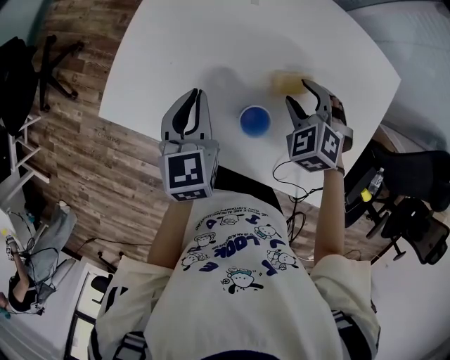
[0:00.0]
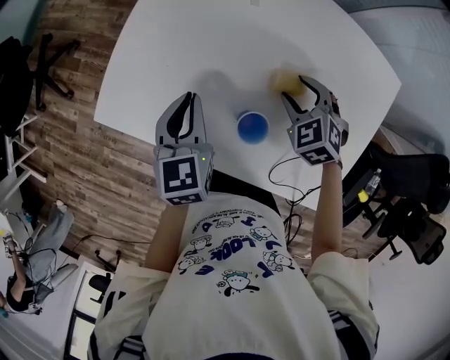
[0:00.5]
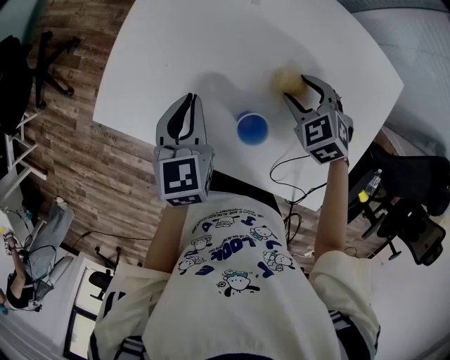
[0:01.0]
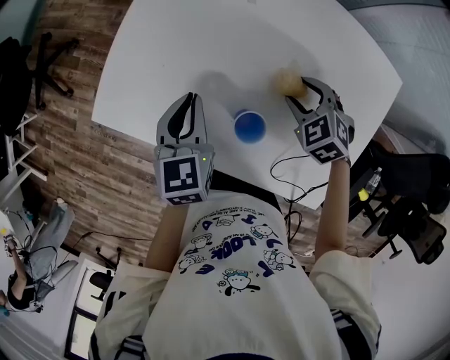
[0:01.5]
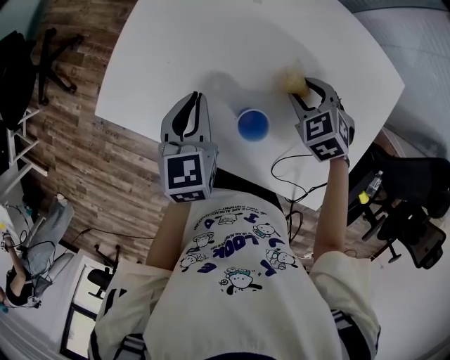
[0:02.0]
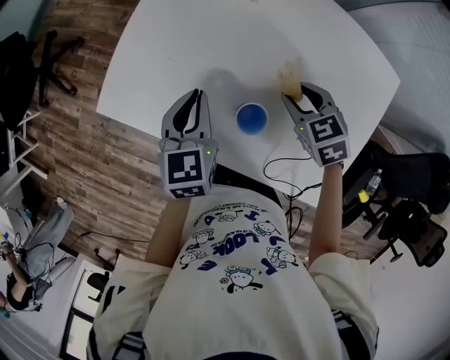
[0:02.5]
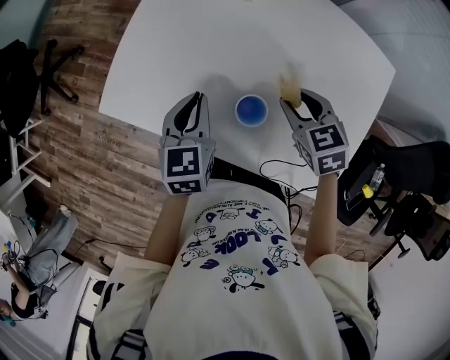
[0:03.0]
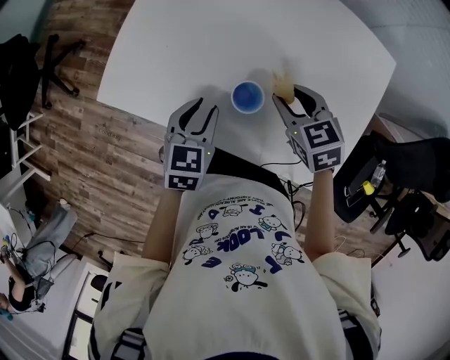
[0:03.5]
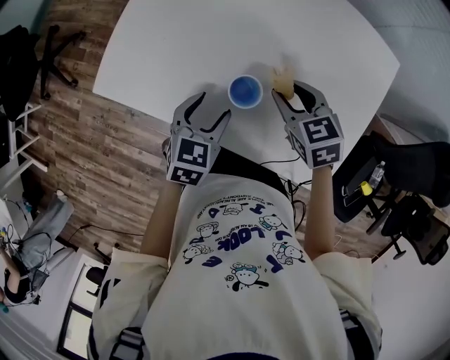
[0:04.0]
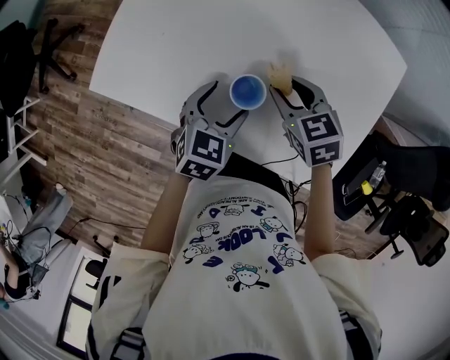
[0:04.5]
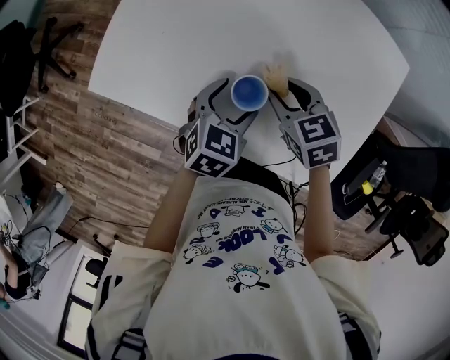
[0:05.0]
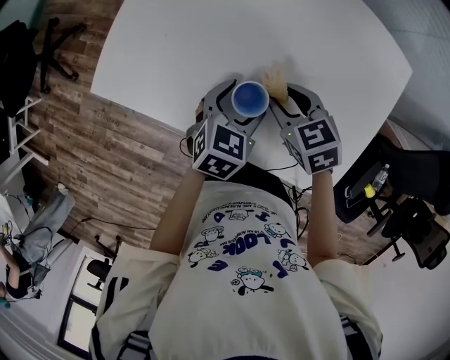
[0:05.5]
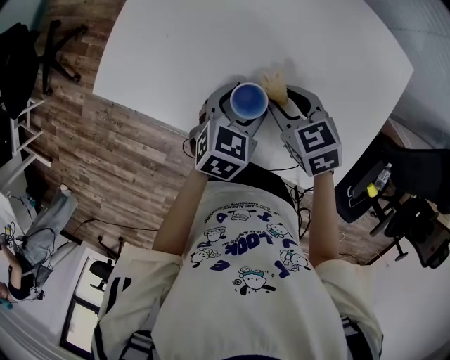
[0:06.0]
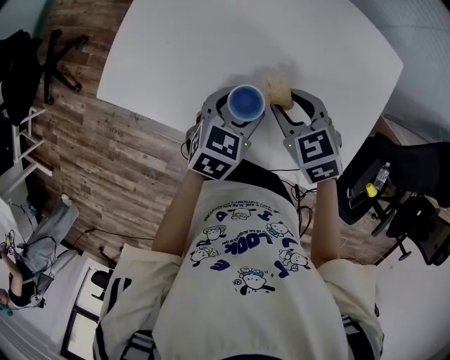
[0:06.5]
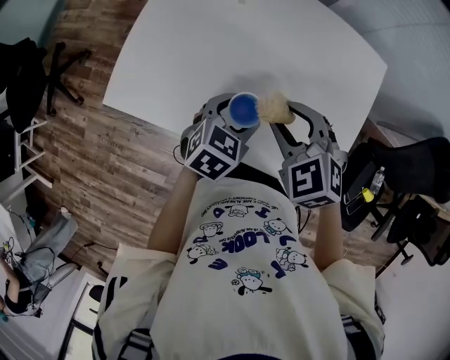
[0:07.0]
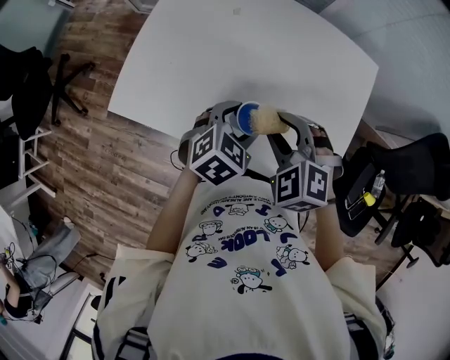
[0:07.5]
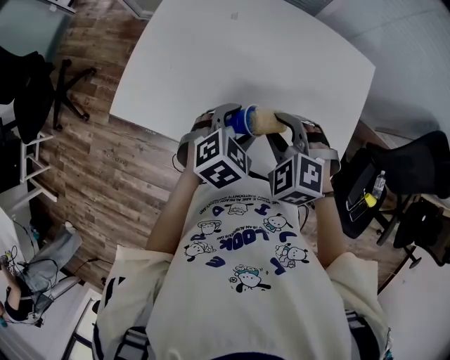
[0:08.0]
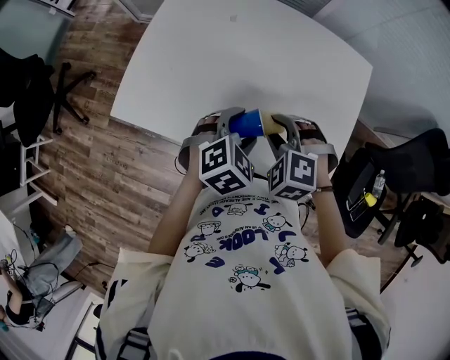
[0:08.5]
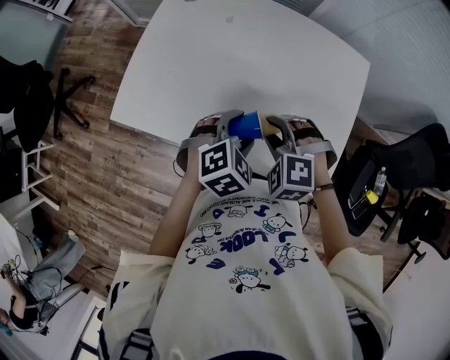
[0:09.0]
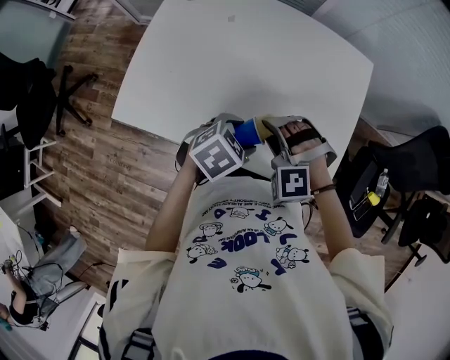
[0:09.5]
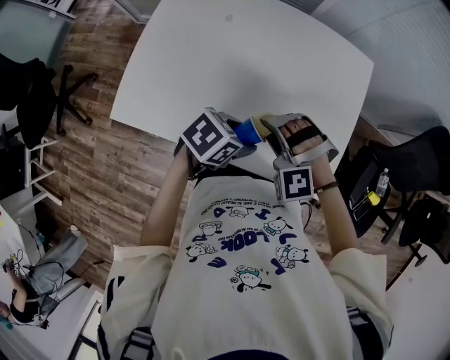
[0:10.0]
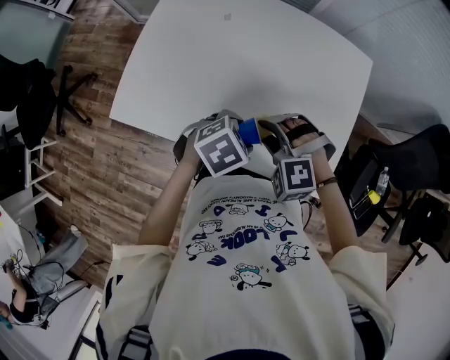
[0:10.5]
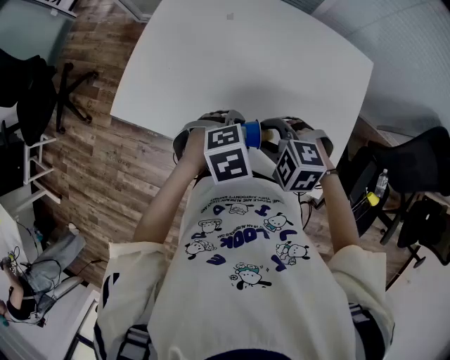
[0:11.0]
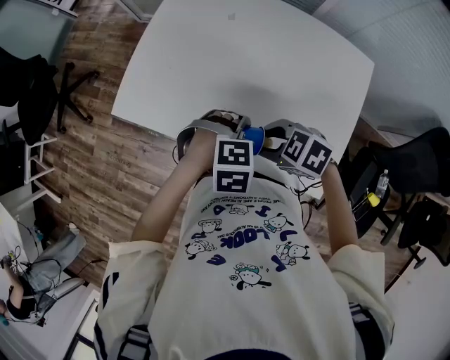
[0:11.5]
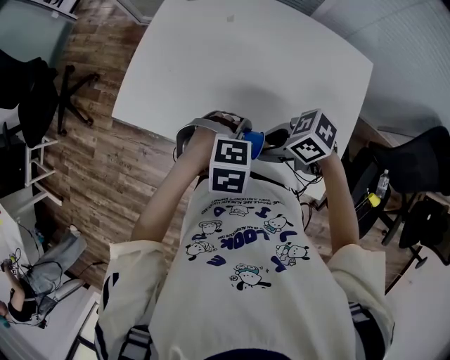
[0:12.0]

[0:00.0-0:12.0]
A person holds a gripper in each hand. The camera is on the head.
0:00.0 to 0:02.0: The grippers stay close to where they were, moving slightly.
0:02.0 to 0:04.0: The left gripper goes roughly 10 cm backward and downward, turns by about 30 degrees, and opens up, while the right gripper changes place by about 10 cm, and swivels approximately 30 degrees.
0:04.0 to 0:06.0: The left gripper shifts roughly 10 cm to the right.
0:06.0 to 0:08.0: Both grippers move upward, some 5 cm. The left gripper rotates some 30 degrees, while the right gripper turns by some 40 degrees.
0:08.0 to 0:10.0: The left gripper rotates some 40 degrees. The right gripper turns by some 40 degrees.
0:10.0 to 0:12.0: The right gripper moves some 5 cm, and swivels approximately 100 degrees, while the left gripper twists some 50 degrees clockwise, seen from behind.

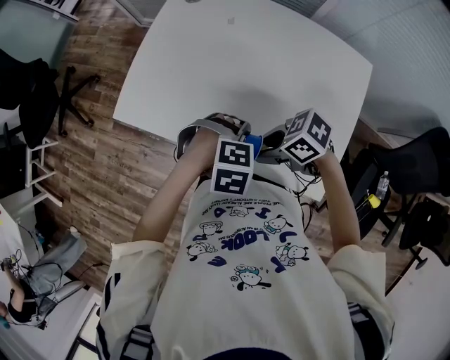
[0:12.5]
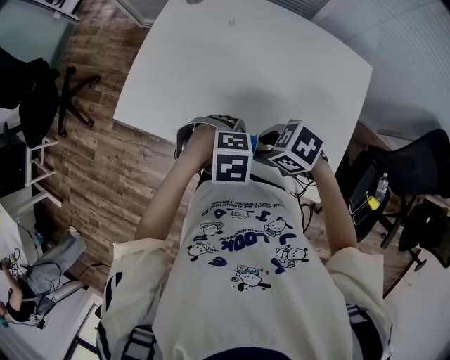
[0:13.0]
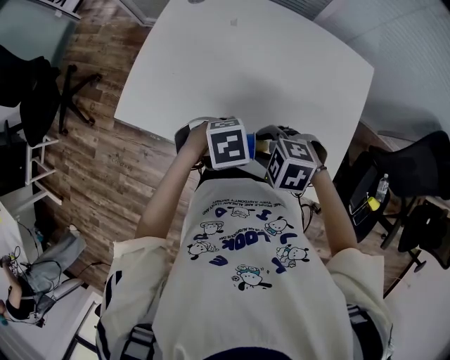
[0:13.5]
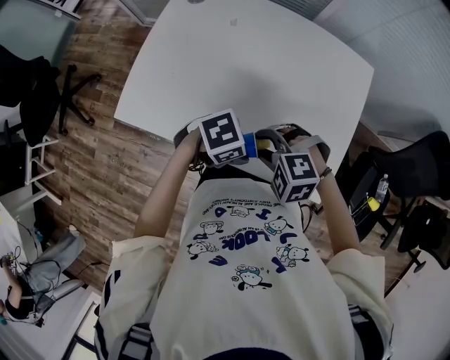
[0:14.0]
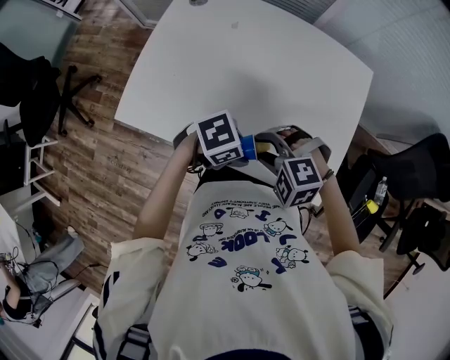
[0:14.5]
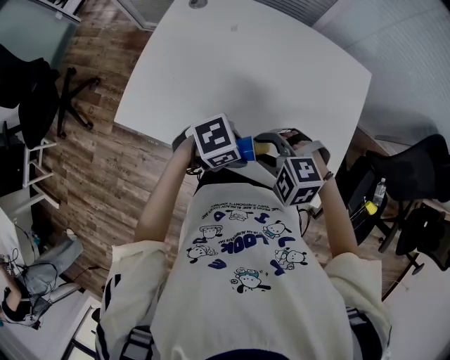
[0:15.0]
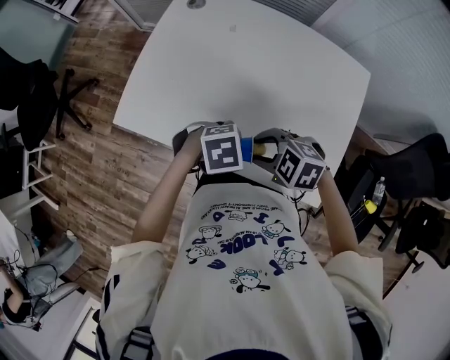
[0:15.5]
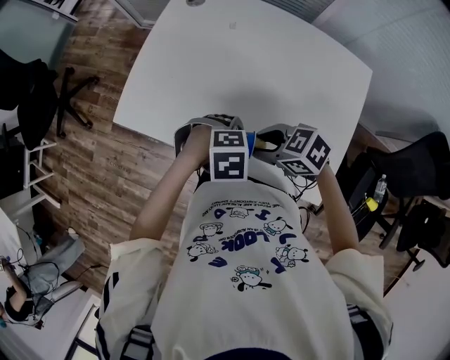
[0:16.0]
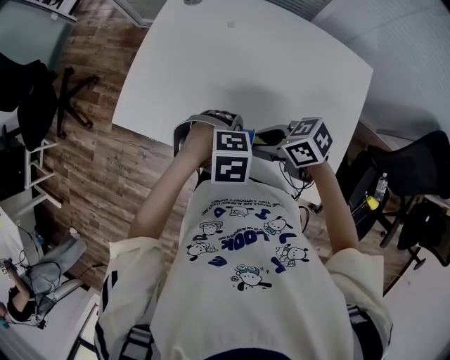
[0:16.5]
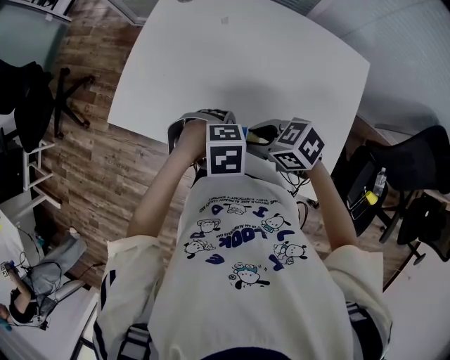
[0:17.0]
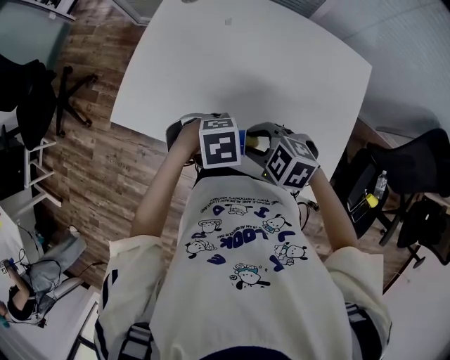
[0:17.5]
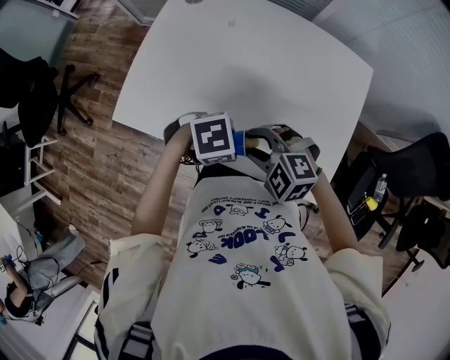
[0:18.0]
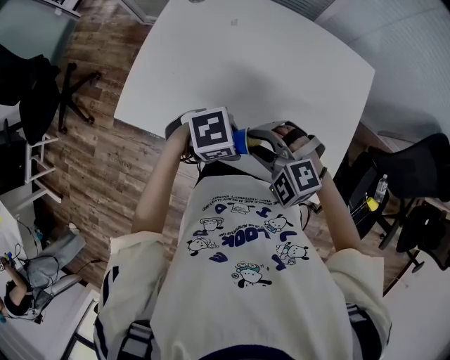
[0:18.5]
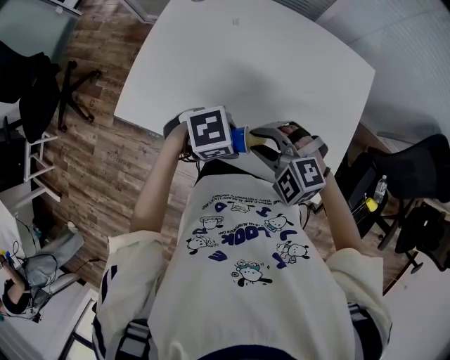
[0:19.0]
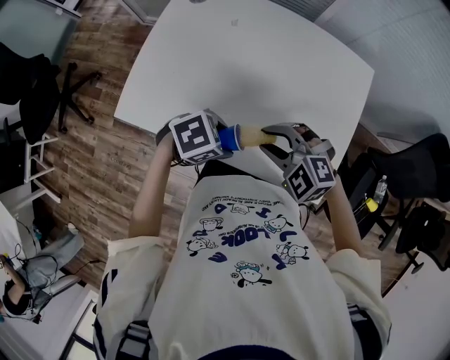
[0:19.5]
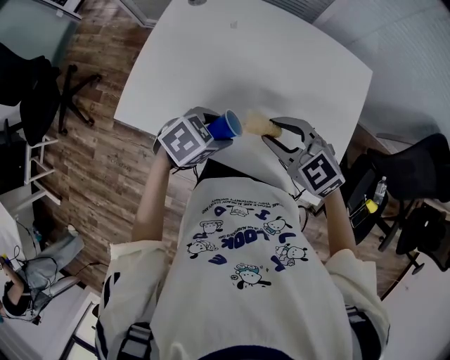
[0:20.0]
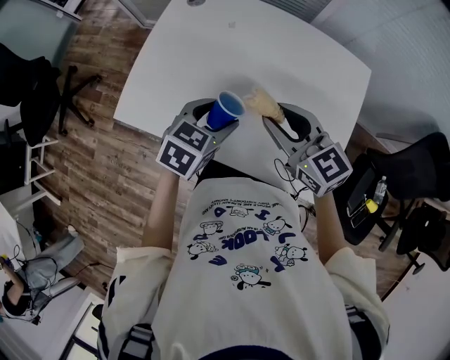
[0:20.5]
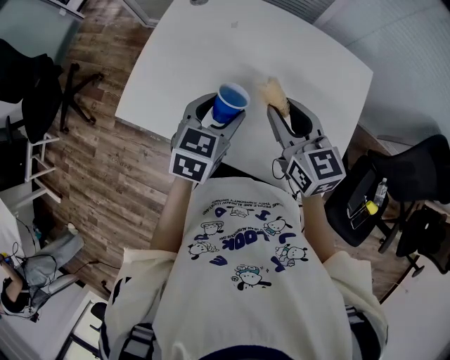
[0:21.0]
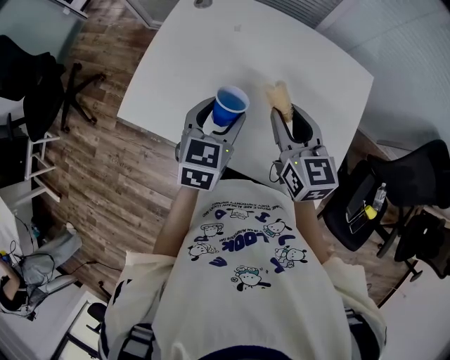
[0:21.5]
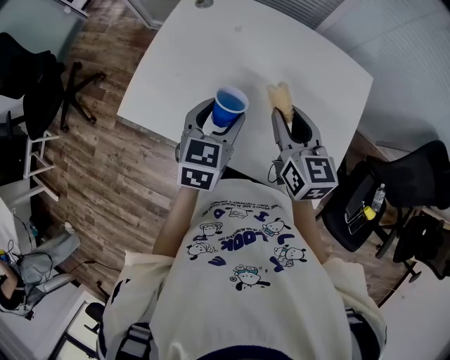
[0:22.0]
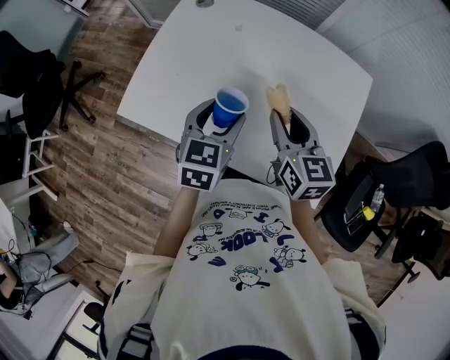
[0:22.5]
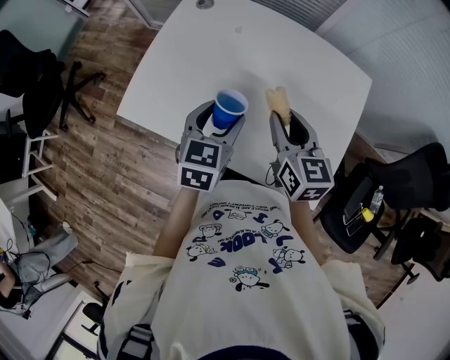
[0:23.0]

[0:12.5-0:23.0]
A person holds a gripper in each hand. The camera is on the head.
0:12.5 to 0:14.5: The left gripper rotates roughly 50 degrees. The right gripper twists approximately 60 degrees counterclockwise, seen from behind.
0:14.5 to 0:16.5: The left gripper swivels roughly 40 degrees. The right gripper rotates around the line of its fingers by some 70 degrees, clockwise from behind.
0:16.5 to 0:19.0: The left gripper swivels roughly 30 degrees. The right gripper rolls counterclockwise, seen from behind, by approximately 70 degrees.
0:19.0 to 0:21.0: The right gripper shifts by about 15 cm, and rolls clockwise, seen from behind, by approximately 60 degrees, while the left gripper shifts by approximately 15 cm, and turns by about 70 degrees.
0:21.0 to 0:23.0: The grippers make only small movements.

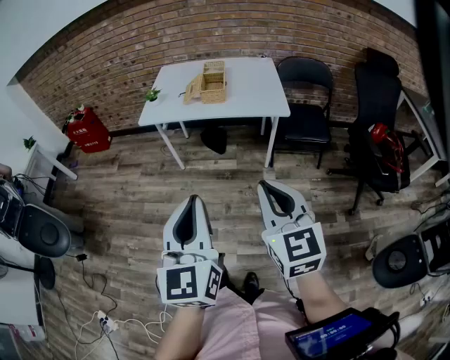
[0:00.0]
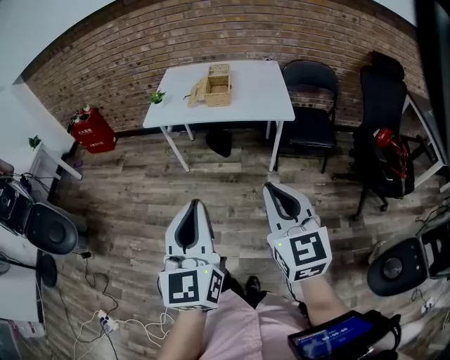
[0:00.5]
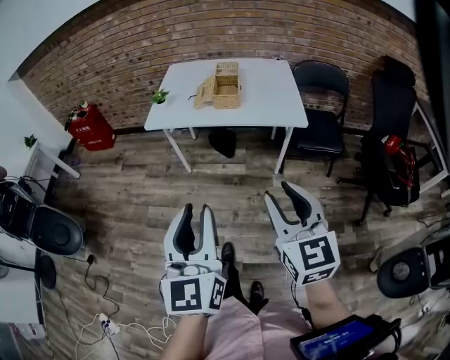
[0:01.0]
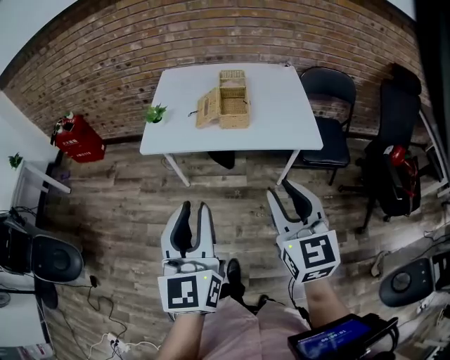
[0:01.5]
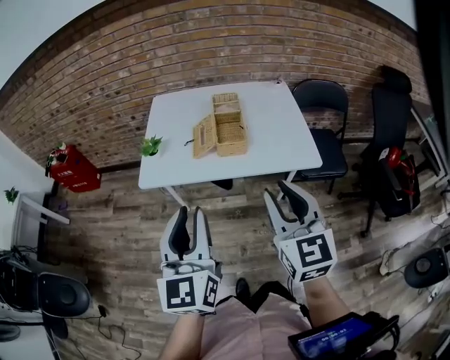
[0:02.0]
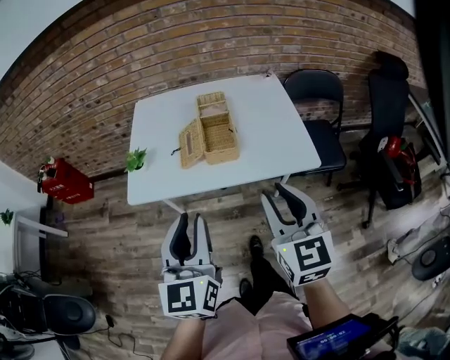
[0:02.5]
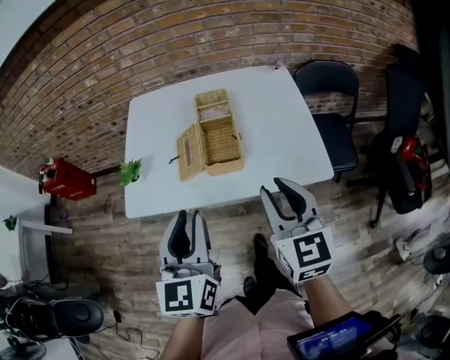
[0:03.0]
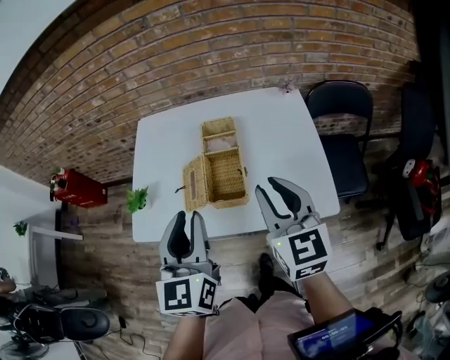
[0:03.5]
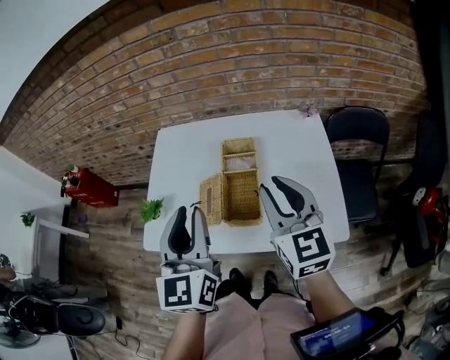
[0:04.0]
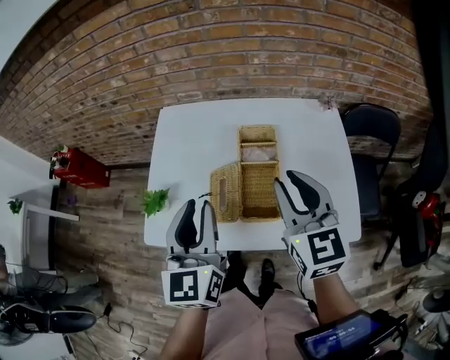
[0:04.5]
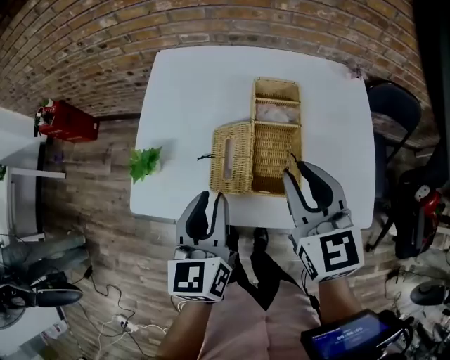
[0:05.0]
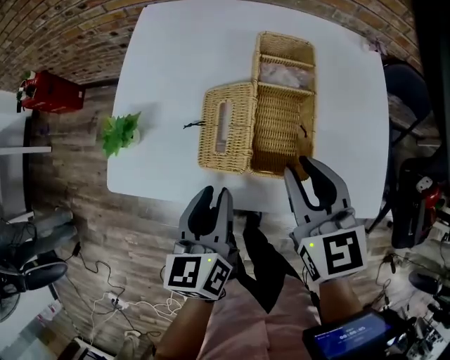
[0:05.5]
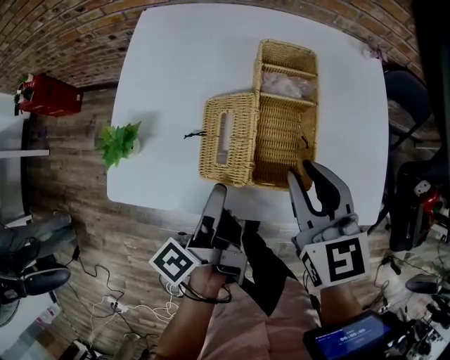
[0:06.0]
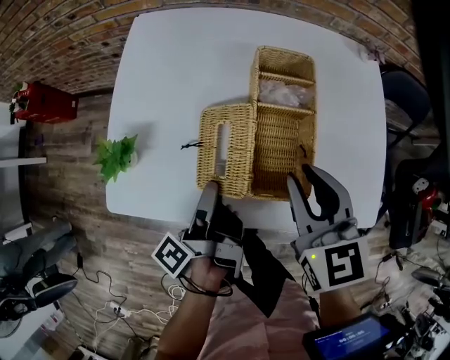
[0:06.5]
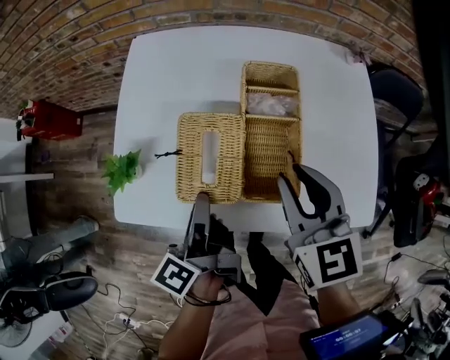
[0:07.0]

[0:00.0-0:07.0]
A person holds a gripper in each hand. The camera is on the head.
0:00.0 to 0:02.0: Both grippers move forward, about 30 cm. The right gripper opens. Meanwhile the left gripper opens.
0:02.0 to 0:03.5: Both grippers travel together forward, roughly 25 cm.
0:03.5 to 0:05.0: The right gripper moves forward, to the left and downward, some 15 cm; the left gripper goes some 15 cm downward, to the left and forward.
0:05.0 to 0:07.0: The left gripper is displaced downward by approximately 5 cm, and rotates around the line of its fingers by roughly 60 degrees, counterclockwise from behind.
